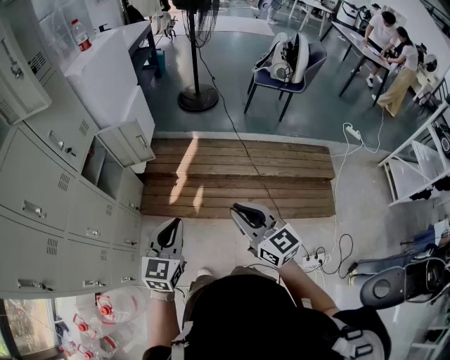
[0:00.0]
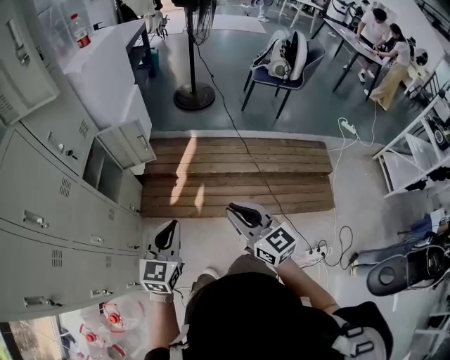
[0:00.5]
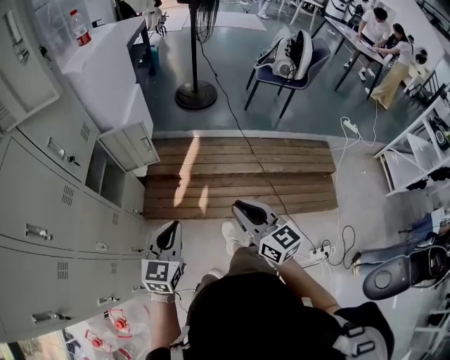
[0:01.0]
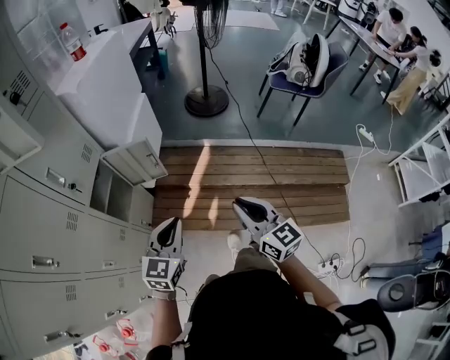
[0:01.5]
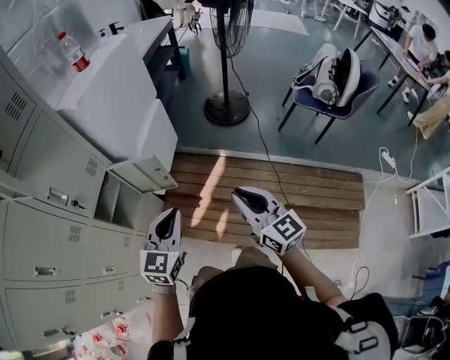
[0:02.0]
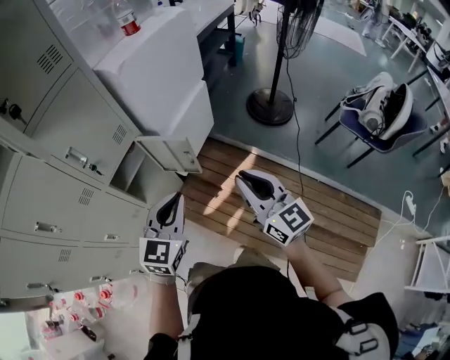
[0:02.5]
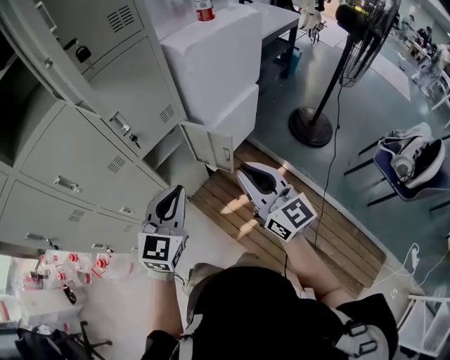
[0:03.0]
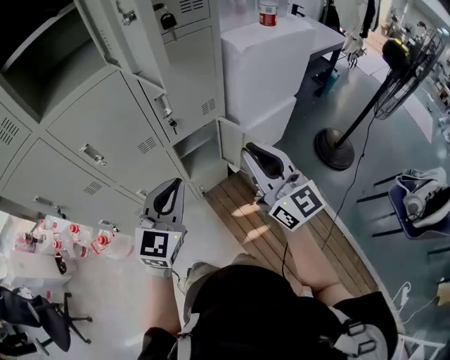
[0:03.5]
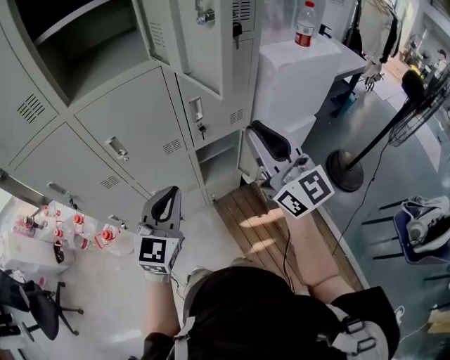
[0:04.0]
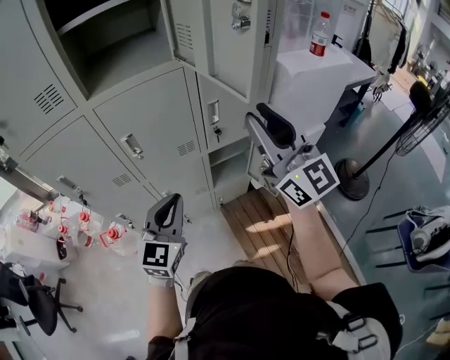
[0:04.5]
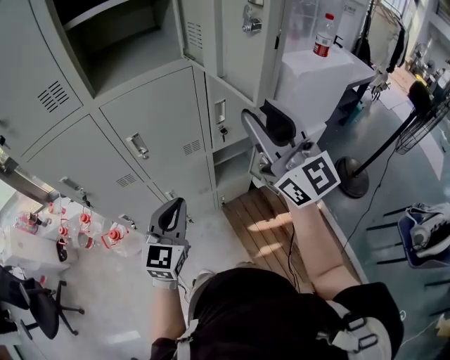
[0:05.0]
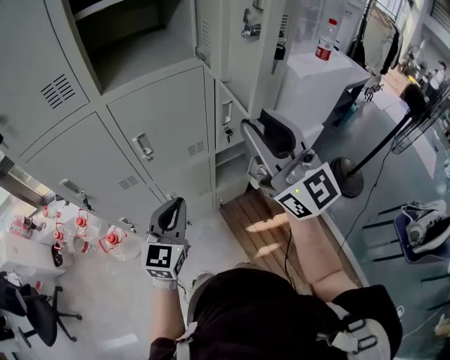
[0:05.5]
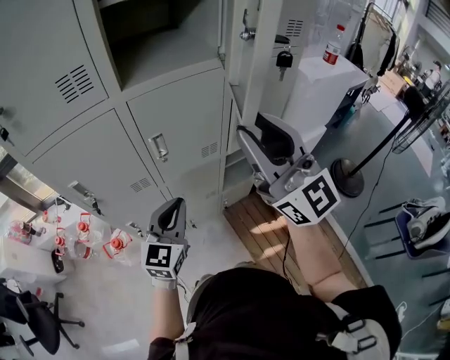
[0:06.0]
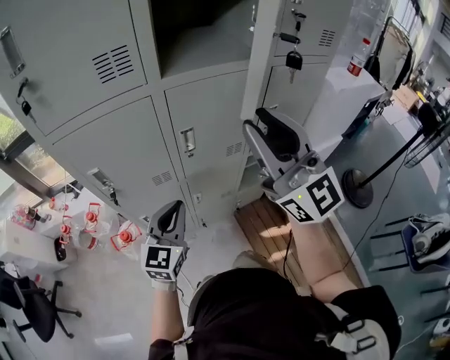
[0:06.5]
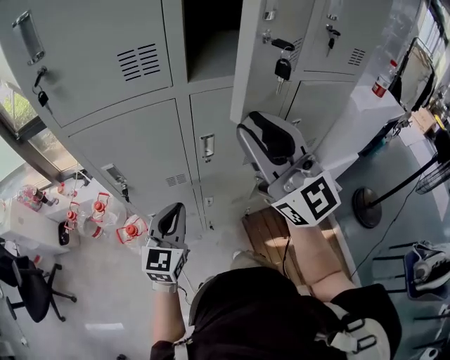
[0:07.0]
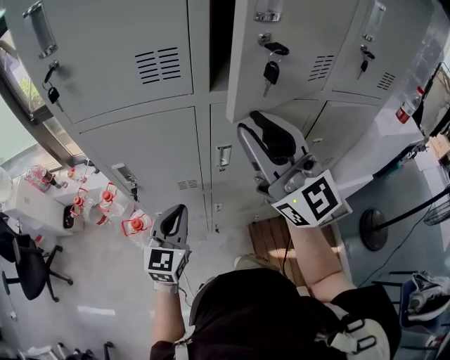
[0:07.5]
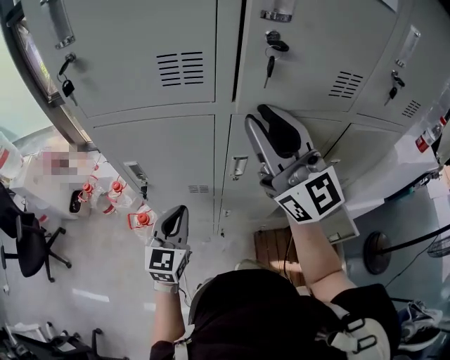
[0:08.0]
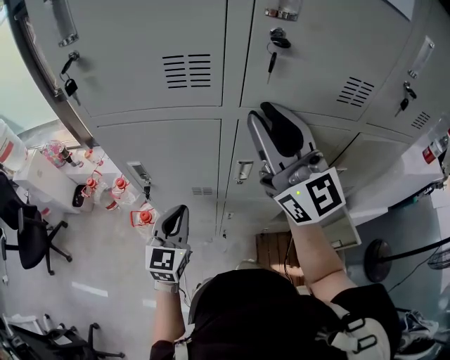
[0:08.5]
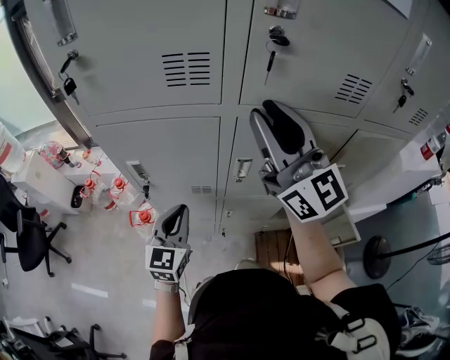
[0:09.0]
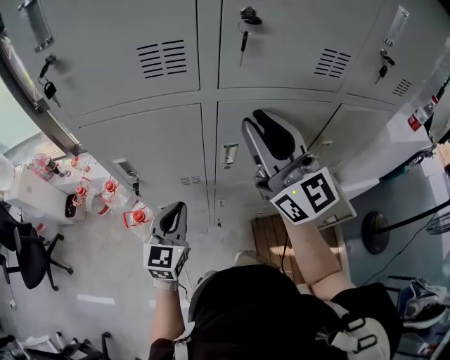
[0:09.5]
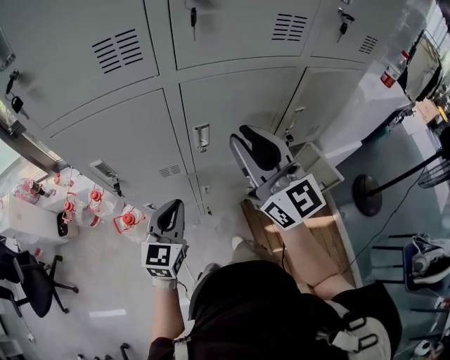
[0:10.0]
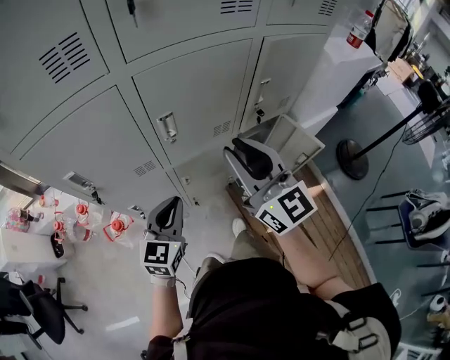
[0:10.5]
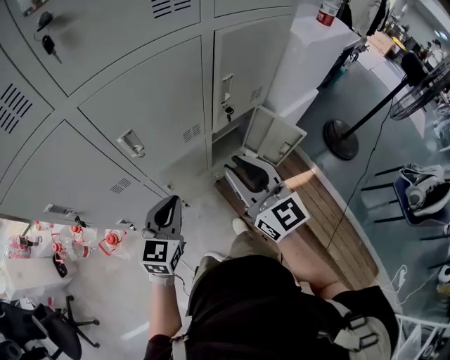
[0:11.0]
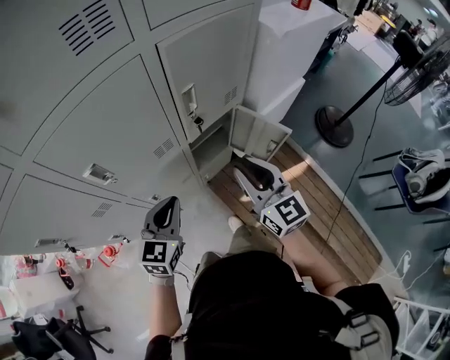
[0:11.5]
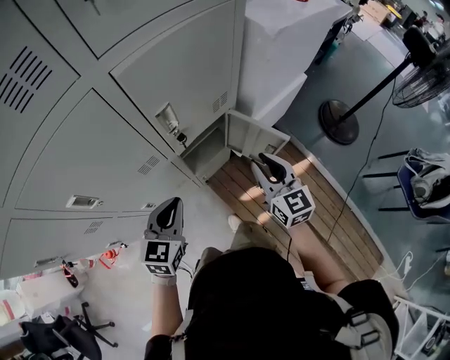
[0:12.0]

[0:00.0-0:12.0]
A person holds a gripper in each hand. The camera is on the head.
0:00.0 to 0:02.0: The two grippers go some 35 cm forward.
0:02.0 to 0:04.0: The right gripper ends up about 40 cm from where it was, and turns by about 50 degrees. Meanwhile the left gripper ends up about 30 cm from where it was, and changes its angle by approximately 50 degrees.
0:04.0 to 0:06.0: The two grippers go some 20 cm to the left.
0:06.0 to 0:08.0: The right gripper heads forward and to the left, covering roughly 20 cm, and swivels roughly 20 degrees; the left gripper moves to the left and forward, some 15 cm, and turns by roughly 30 degrees.
0:08.0 to 0:10.0: The right gripper travels downward and backward by about 10 cm, while the left gripper ends up some 5 cm from where it was.
0:10.0 to 0:12.0: The right gripper changes place by approximately 50 cm, and changes its angle by approximately 40 degrees, while the left gripper shifts by some 30 cm, and turns by roughly 30 degrees.

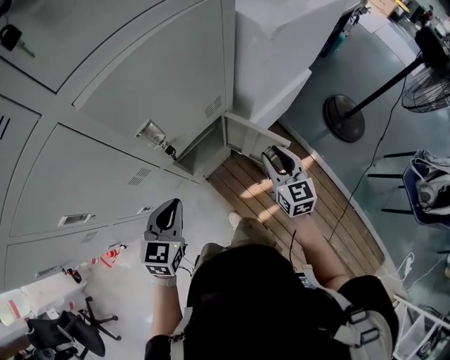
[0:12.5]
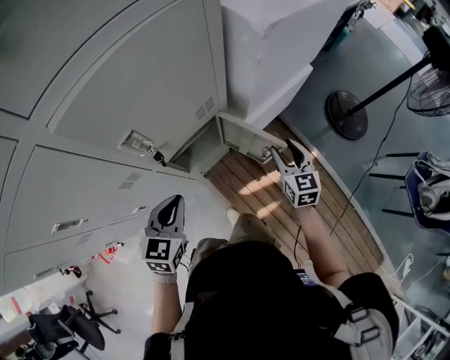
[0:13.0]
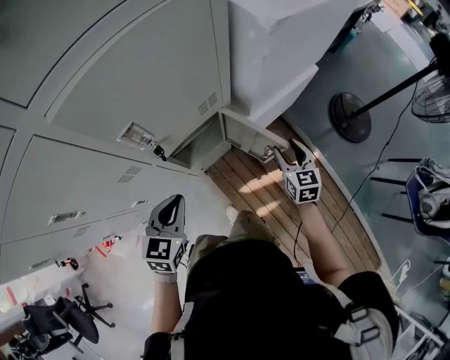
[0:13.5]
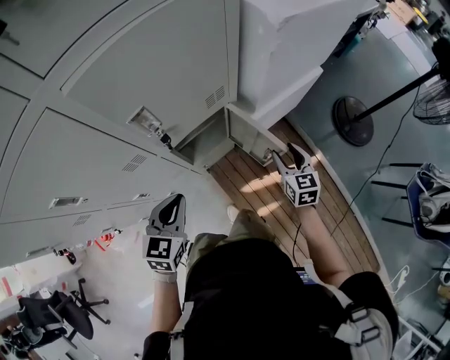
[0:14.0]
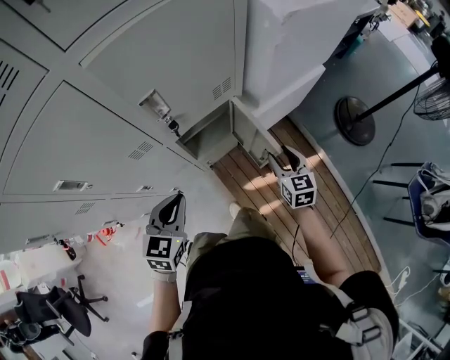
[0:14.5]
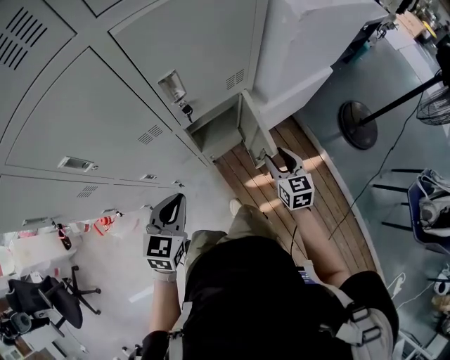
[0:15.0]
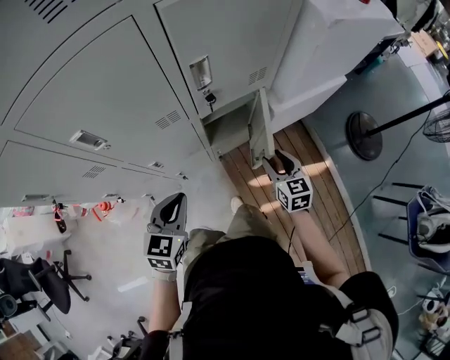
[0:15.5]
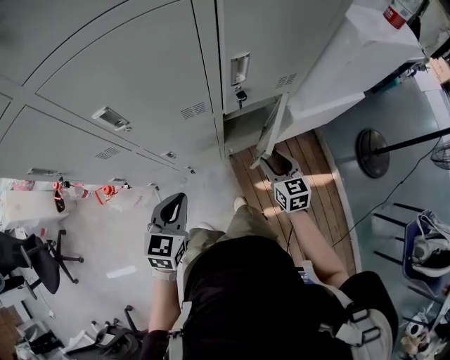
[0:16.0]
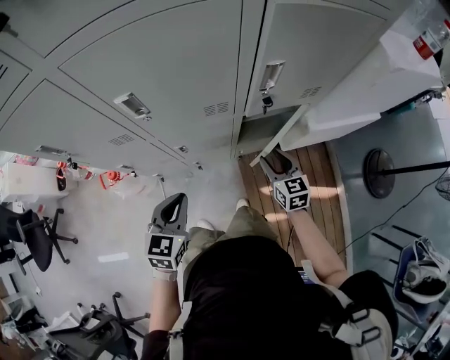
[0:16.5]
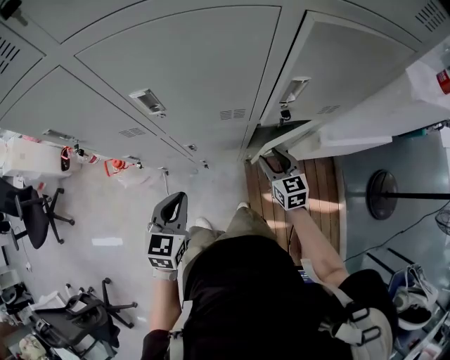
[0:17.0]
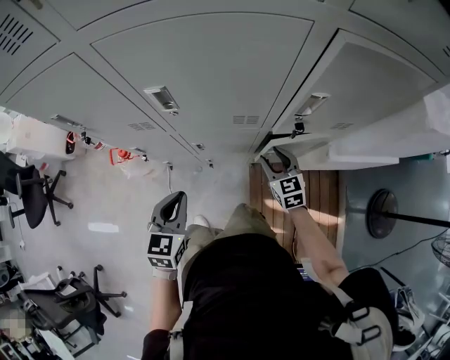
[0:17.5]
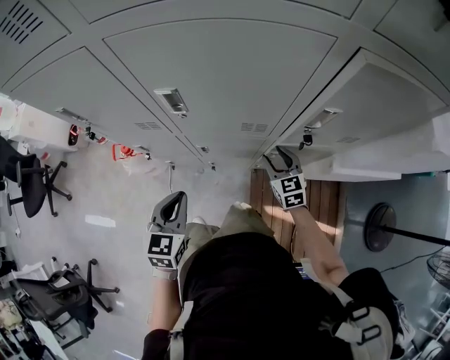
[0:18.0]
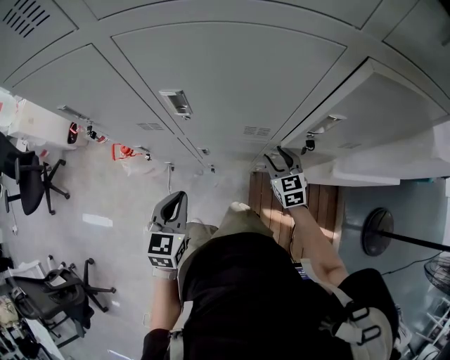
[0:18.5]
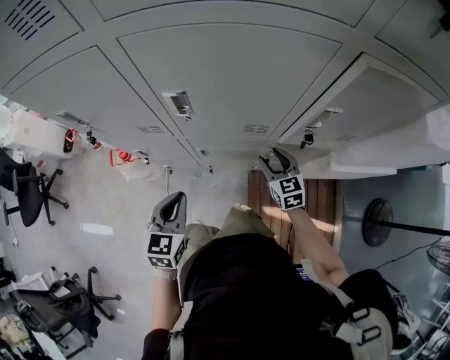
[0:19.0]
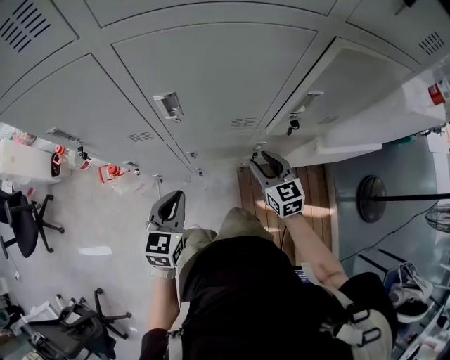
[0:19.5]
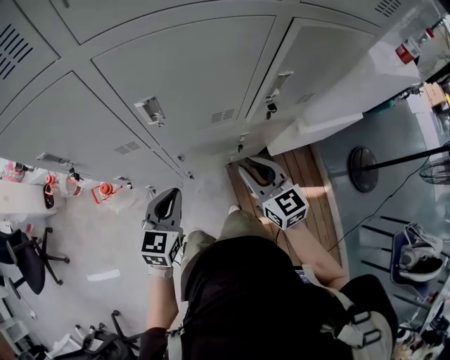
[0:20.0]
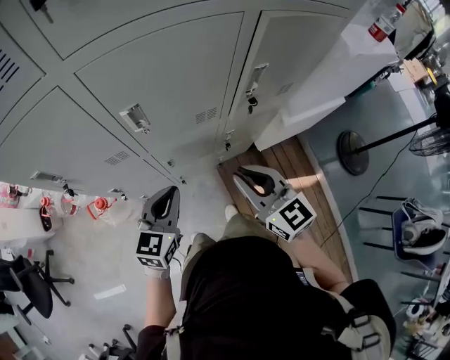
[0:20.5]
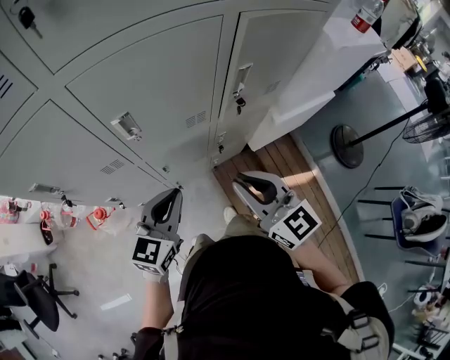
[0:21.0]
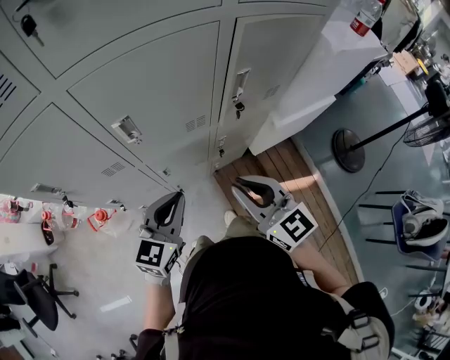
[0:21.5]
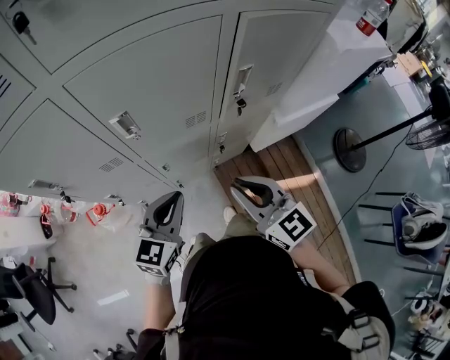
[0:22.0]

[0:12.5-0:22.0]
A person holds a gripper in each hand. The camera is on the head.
0:12.5 to 0:14.5: The left gripper shifts by about 5 cm, while the right gripper moves downward, about 10 cm.
0:14.5 to 0:16.5: The right gripper shifts some 20 cm to the left, and turns by approximately 30 degrees, while the left gripper moves to the left and backward, about 15 cm, and turns by about 20 degrees.
0:16.5 to 0:18.0: The right gripper is displaced forward and to the left by about 10 cm, and changes its angle by some 20 degrees.
0:18.0 to 0:20.0: The left gripper changes its angle by approximately 20 degrees, while the right gripper is displaced upward, backward and to the left by some 20 cm, and closes up.
0:20.0 to 0:22.0: The left gripper goes about 10 cm to the right and upward; the right gripper is displaced upward and backward by some 10 cm.

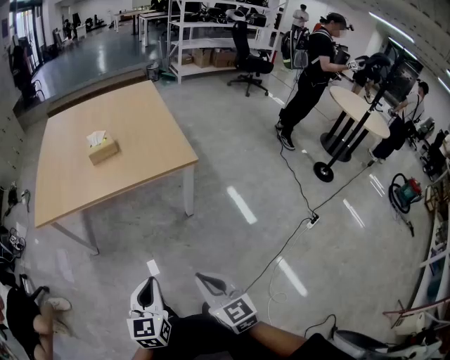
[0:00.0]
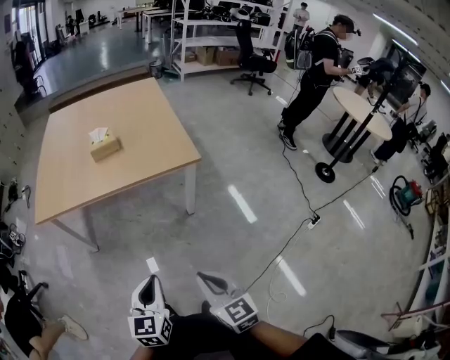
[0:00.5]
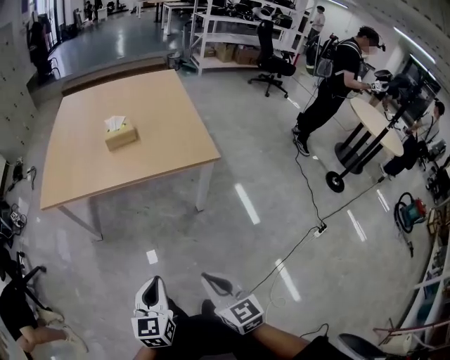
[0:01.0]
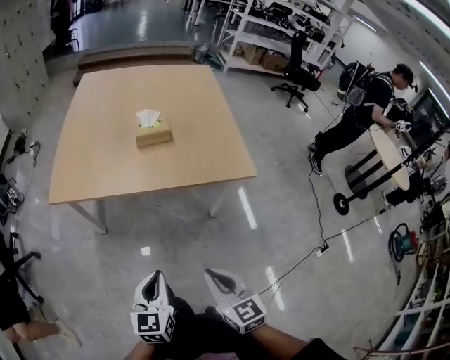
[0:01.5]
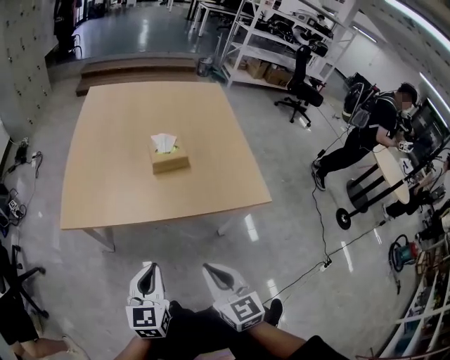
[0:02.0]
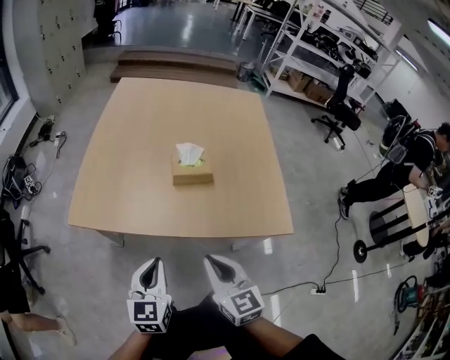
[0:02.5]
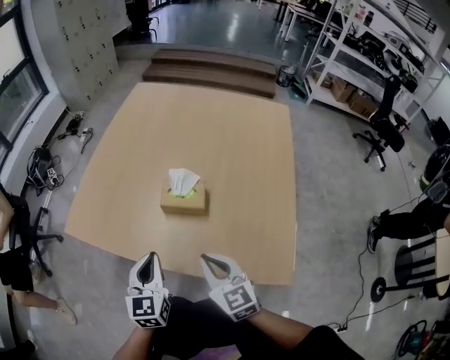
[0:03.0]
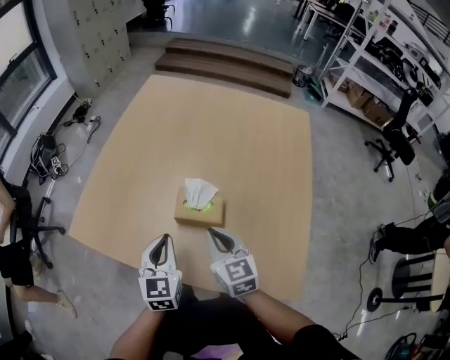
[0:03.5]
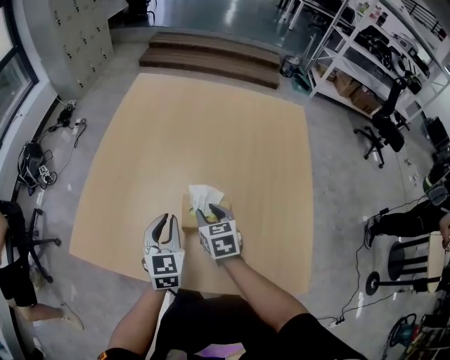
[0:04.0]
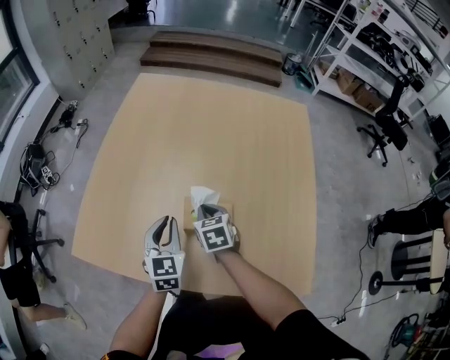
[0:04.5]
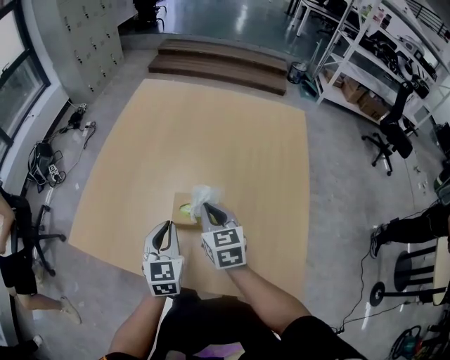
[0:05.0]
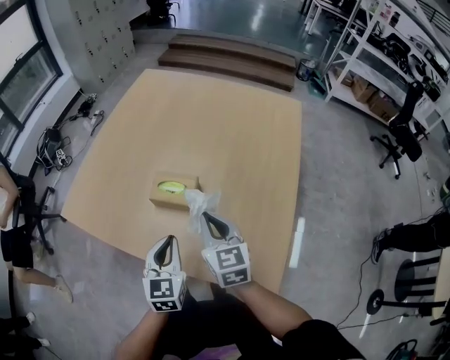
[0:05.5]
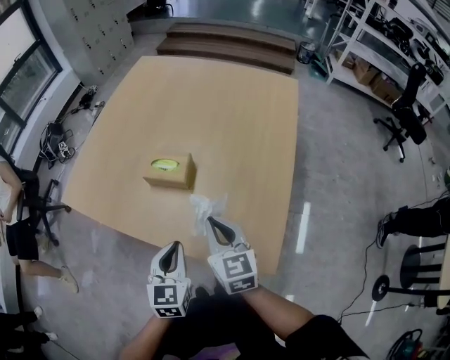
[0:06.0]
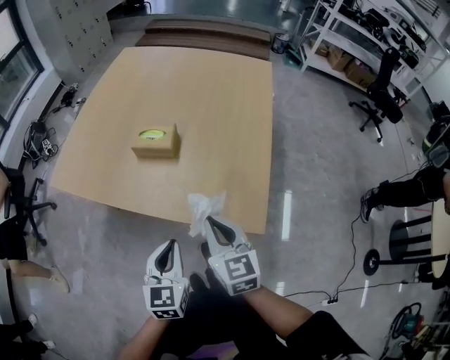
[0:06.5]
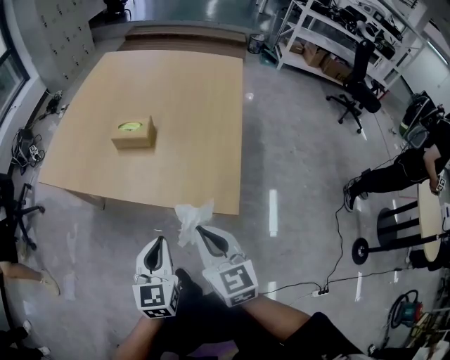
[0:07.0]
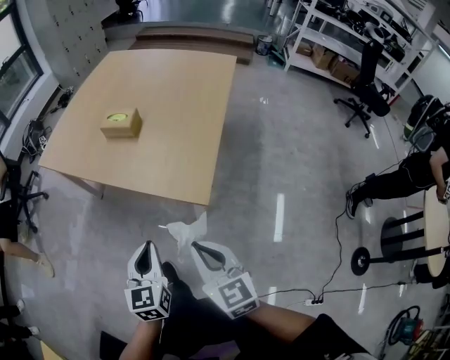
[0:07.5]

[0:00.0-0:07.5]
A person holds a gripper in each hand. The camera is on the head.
0:00.0 to 0:02.0: The two grippers go roughly 30 cm forward and to the left.
0:02.0 to 0:04.0: The left gripper ends up some 40 cm from where it was, and turns by about 30 degrees. The right gripper changes place by some 50 cm, changes its angle by some 20 degrees, and opens its fingers.
0:04.0 to 0:05.5: The right gripper heads backward, upward and to the right, covering roughly 20 cm, swivels some 20 degrees, and closes up, while the left gripper goes about 20 cm backward and to the right.
0:05.5 to 0:07.5: Both grippers travel together backward, about 35 cm.
